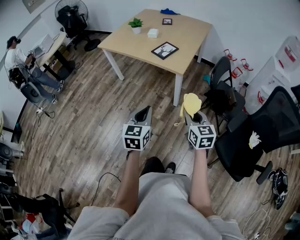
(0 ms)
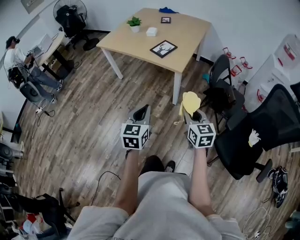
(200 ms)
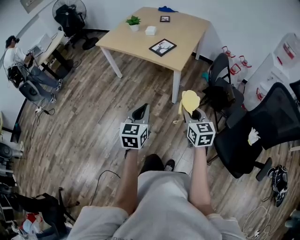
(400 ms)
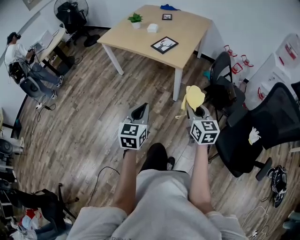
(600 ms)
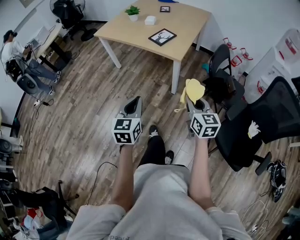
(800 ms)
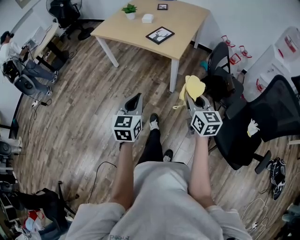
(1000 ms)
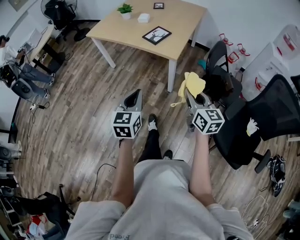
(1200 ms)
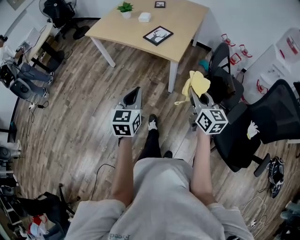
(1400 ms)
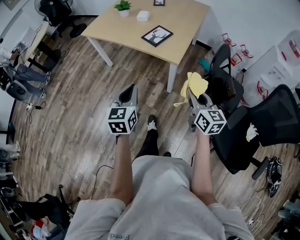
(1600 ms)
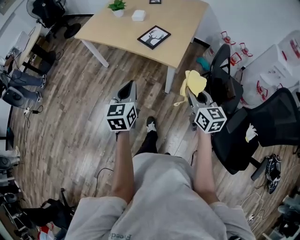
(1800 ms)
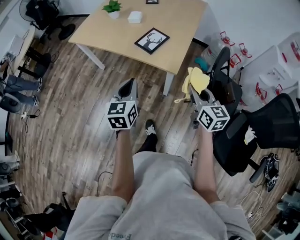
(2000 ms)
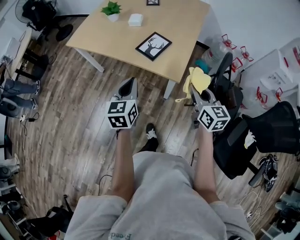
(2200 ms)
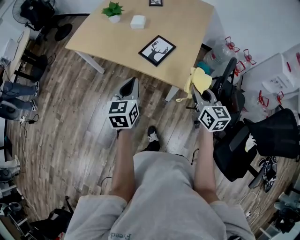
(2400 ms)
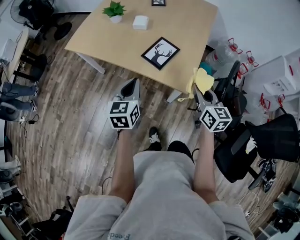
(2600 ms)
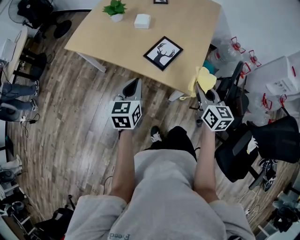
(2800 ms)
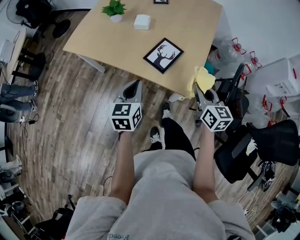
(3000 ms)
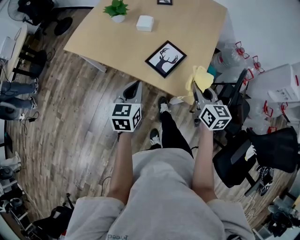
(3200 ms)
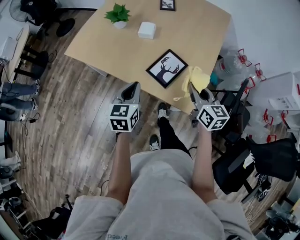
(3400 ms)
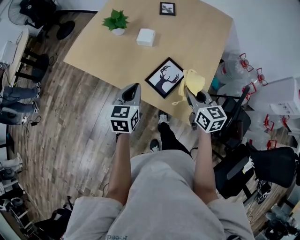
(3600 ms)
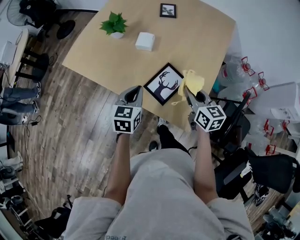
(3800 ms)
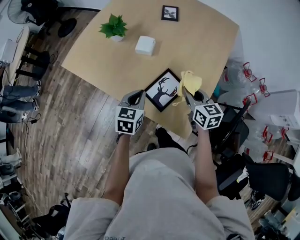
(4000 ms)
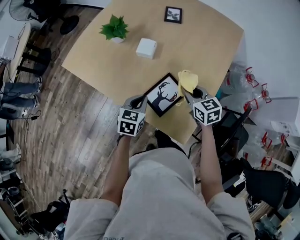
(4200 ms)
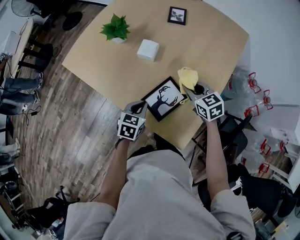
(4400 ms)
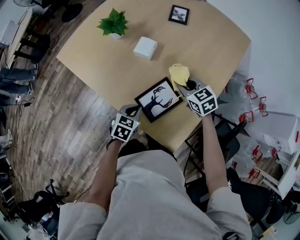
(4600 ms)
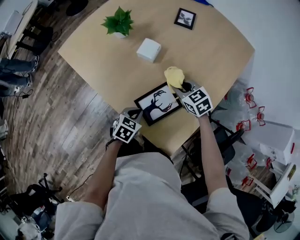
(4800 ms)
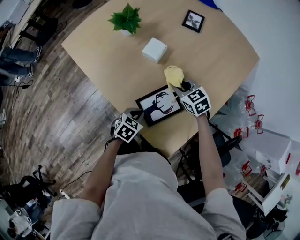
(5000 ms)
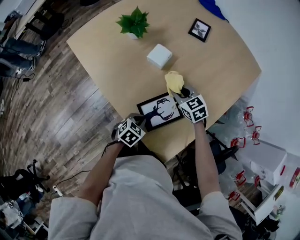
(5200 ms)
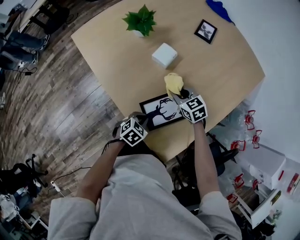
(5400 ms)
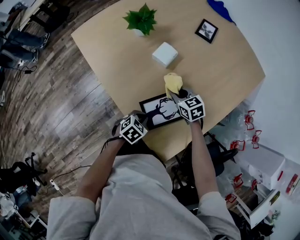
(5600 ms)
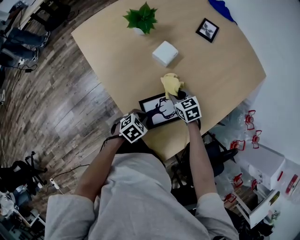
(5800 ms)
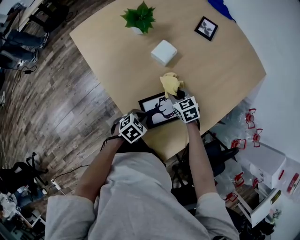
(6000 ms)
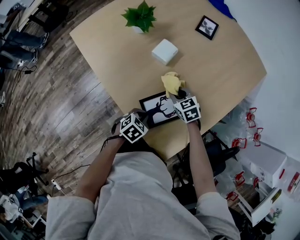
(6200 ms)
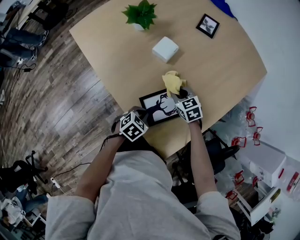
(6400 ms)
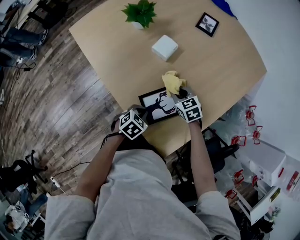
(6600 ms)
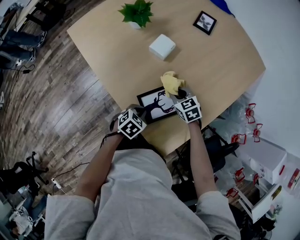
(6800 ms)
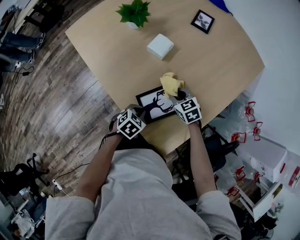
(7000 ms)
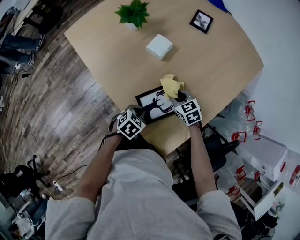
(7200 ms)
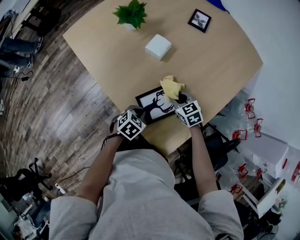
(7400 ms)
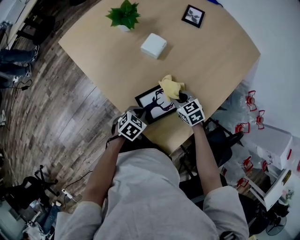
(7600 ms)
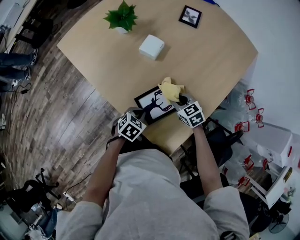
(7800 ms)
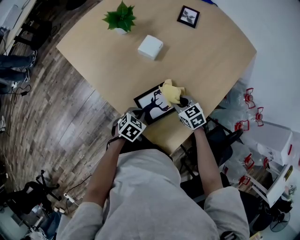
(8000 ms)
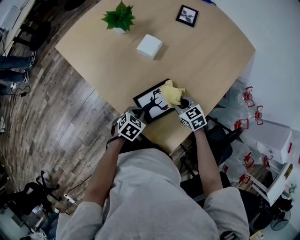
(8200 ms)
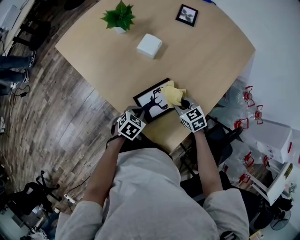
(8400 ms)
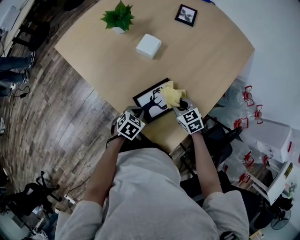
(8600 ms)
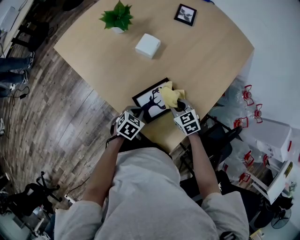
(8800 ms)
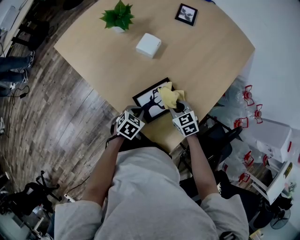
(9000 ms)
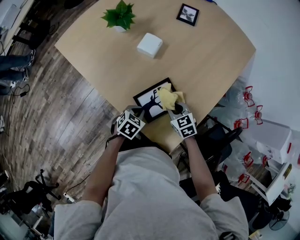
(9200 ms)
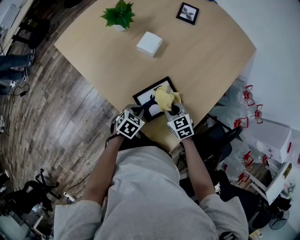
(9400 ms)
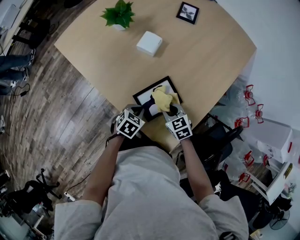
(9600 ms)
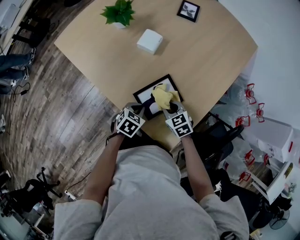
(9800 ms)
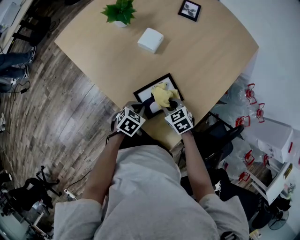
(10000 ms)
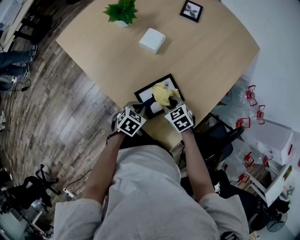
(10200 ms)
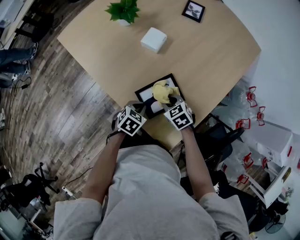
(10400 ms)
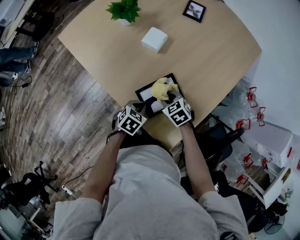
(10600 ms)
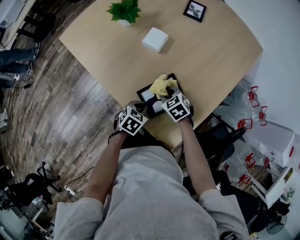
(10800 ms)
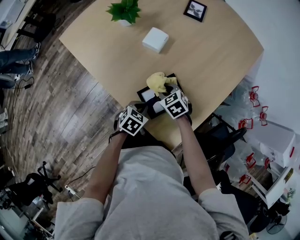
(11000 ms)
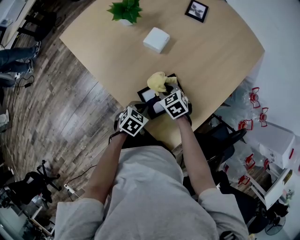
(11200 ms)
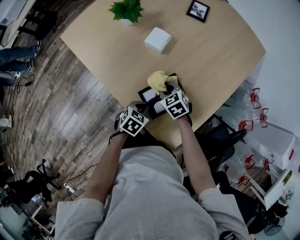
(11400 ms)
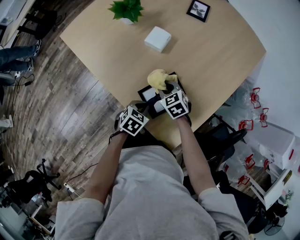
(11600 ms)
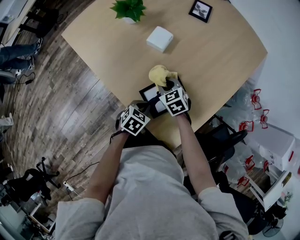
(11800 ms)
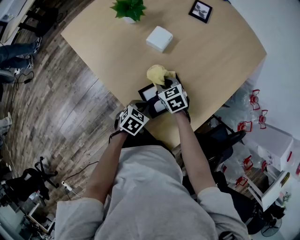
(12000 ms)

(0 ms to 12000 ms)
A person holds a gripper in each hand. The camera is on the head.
0 ms - 1600 ms: The two grippers go some 15 cm forward.
1600 ms - 3000 ms: The two grippers go approximately 35 cm forward.
3000 ms - 4400 ms: The left gripper heads forward and downward, covering roughly 20 cm, and turns by some 20 degrees. The right gripper moves forward, about 30 cm, and changes its angle by roughly 40 degrees.
4400 ms - 6000 ms: The right gripper moves downward and to the left, approximately 15 cm, and turns by about 20 degrees. Meanwhile the left gripper shifts approximately 10 cm downward.
6000 ms - 7600 ms: The right gripper travels backward by roughly 5 cm.
7600 ms - 9000 ms: The right gripper changes place by some 5 cm.
9000 ms - 10400 ms: The right gripper moves roughly 5 cm.
10400 ms - 12000 ms: The right gripper travels forward and to the left by about 10 cm.

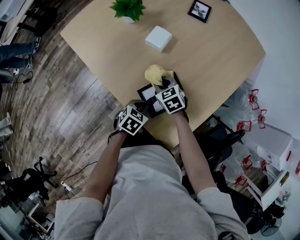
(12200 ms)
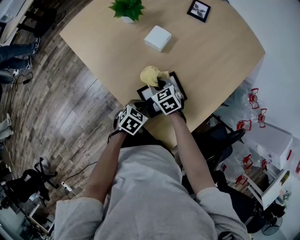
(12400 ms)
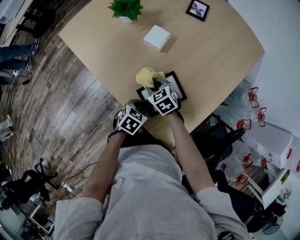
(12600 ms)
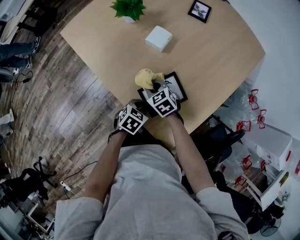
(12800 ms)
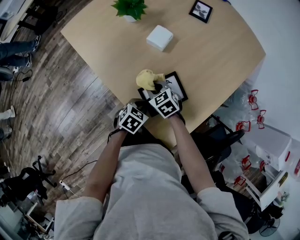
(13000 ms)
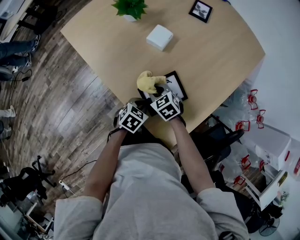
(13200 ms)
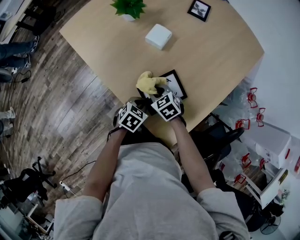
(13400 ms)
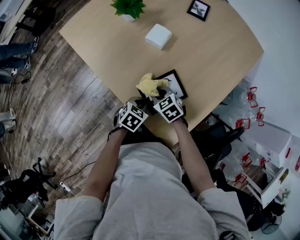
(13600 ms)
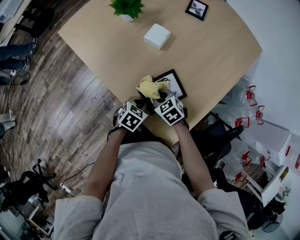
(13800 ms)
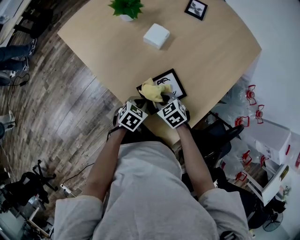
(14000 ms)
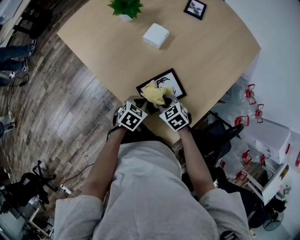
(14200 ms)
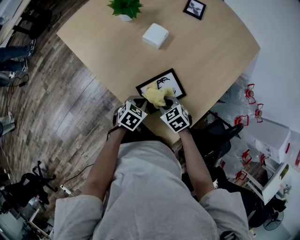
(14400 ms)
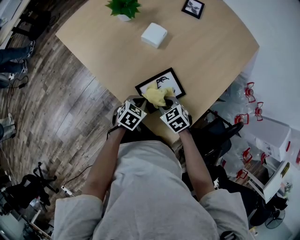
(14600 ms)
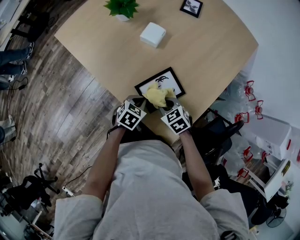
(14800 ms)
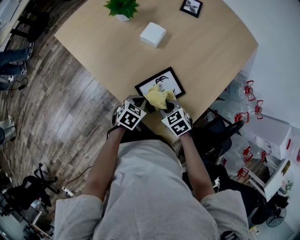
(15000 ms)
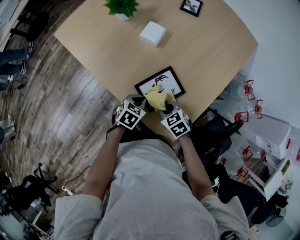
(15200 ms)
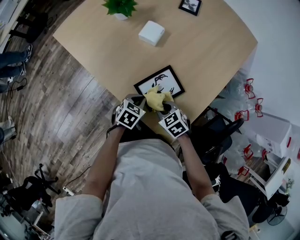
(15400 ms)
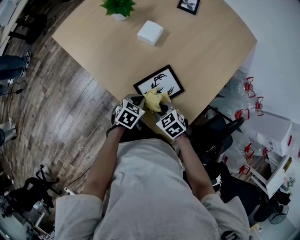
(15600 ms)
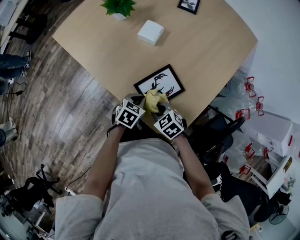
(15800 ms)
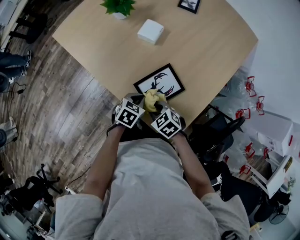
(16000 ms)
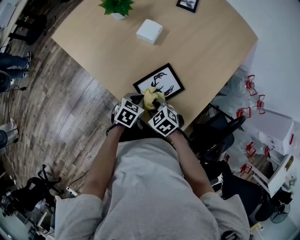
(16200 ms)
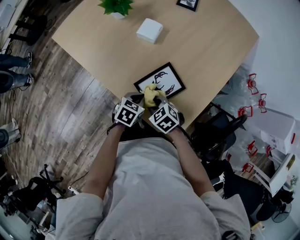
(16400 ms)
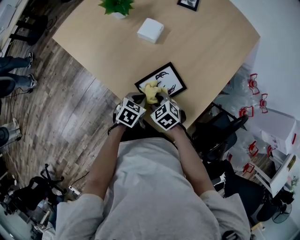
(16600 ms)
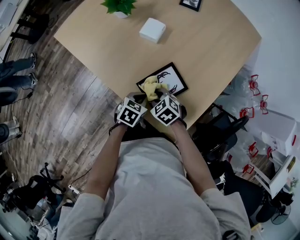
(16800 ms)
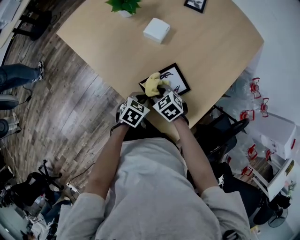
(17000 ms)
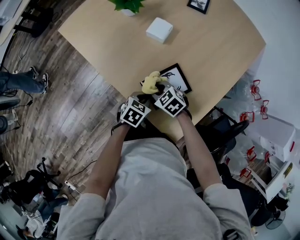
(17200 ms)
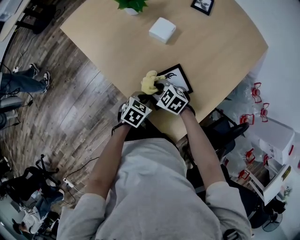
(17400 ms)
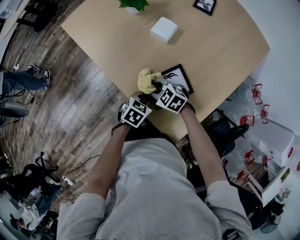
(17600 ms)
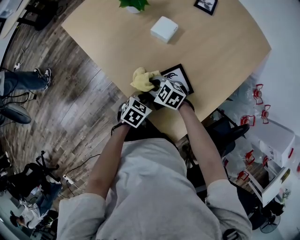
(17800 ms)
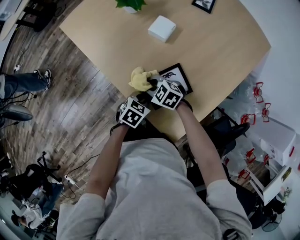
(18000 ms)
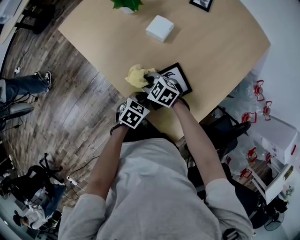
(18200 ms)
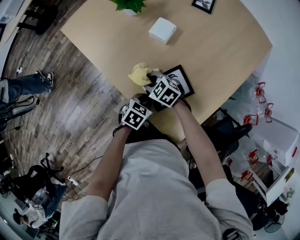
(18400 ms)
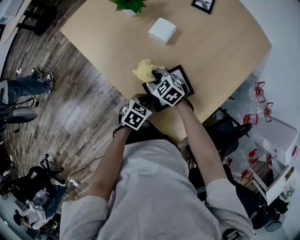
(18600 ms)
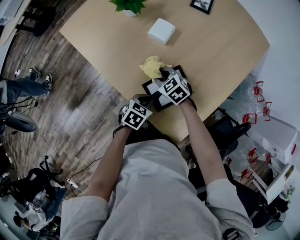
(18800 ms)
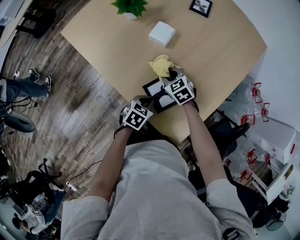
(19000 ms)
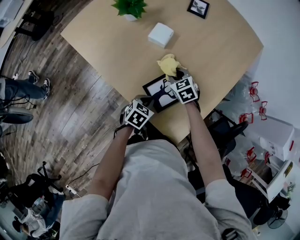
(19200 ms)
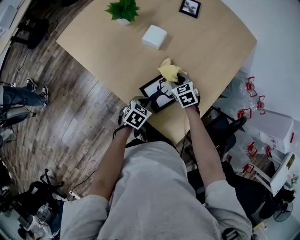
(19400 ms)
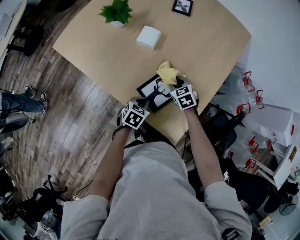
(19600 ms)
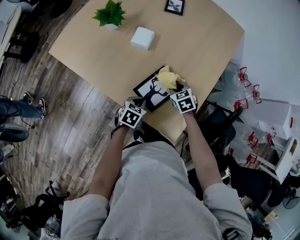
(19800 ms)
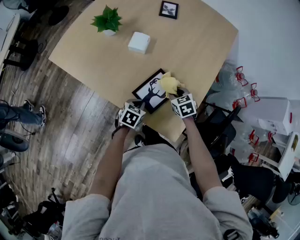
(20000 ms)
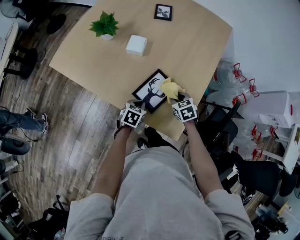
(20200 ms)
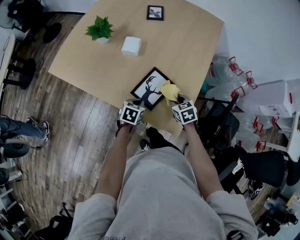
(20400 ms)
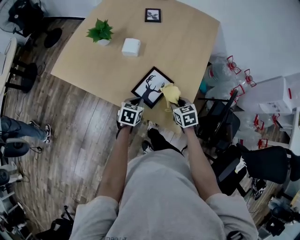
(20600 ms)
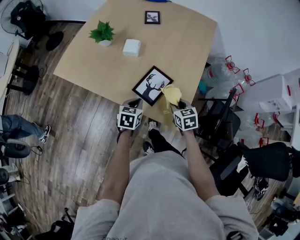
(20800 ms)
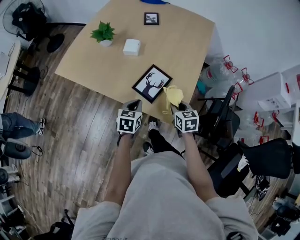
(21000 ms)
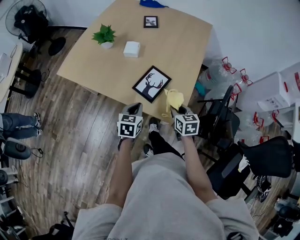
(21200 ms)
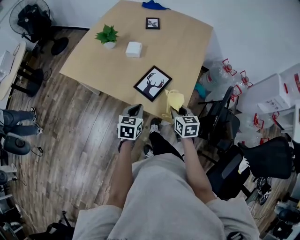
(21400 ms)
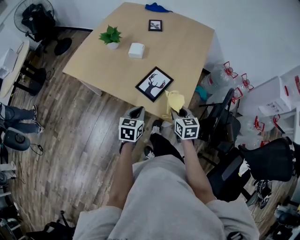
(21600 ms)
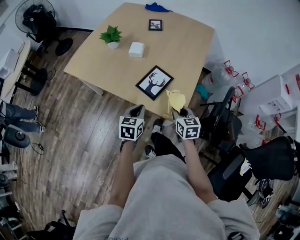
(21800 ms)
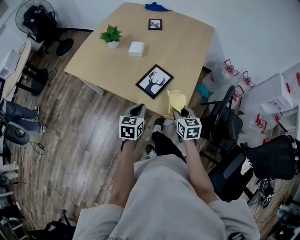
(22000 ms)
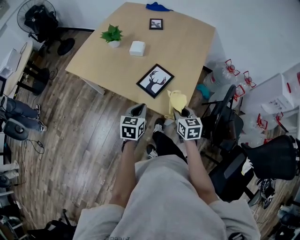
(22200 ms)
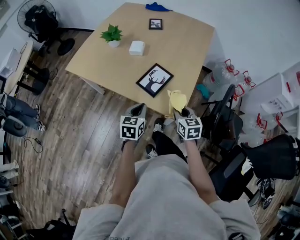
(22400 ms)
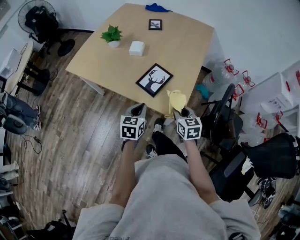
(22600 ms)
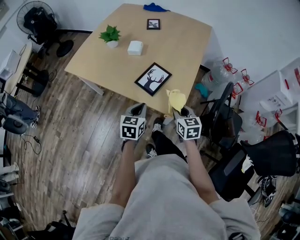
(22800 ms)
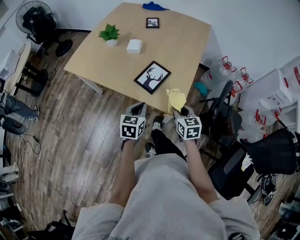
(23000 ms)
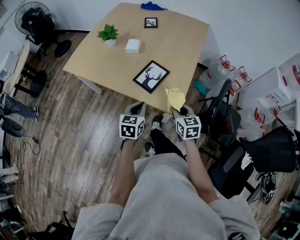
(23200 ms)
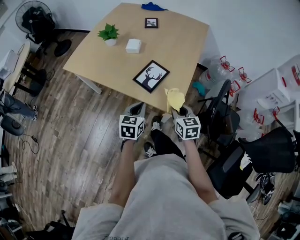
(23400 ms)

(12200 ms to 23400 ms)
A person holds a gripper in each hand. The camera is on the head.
12200 ms - 13800 ms: The right gripper is displaced backward by some 10 cm.
13800 ms - 15400 ms: The right gripper is displaced backward by about 5 cm.
15400 ms - 17000 ms: The right gripper travels forward by about 5 cm.
17000 ms - 18600 ms: The right gripper ends up roughly 10 cm from where it was.
18600 ms - 20200 ms: The right gripper shifts by some 20 cm, and changes its angle by about 50 degrees.
20200 ms - 21800 ms: The right gripper travels backward and upward by approximately 20 cm, and changes its angle by some 30 degrees; the left gripper shifts roughly 20 cm upward and backward, and swivels roughly 20 degrees.
21800 ms - 23400 ms: The right gripper travels backward by approximately 5 cm; the left gripper moves roughly 5 cm.

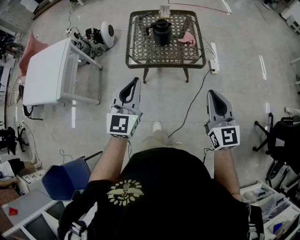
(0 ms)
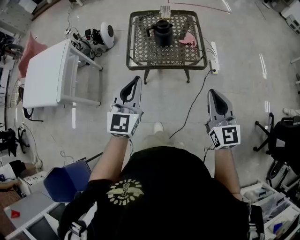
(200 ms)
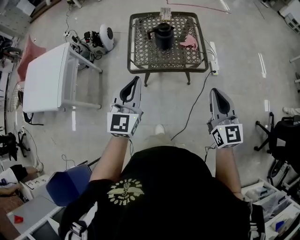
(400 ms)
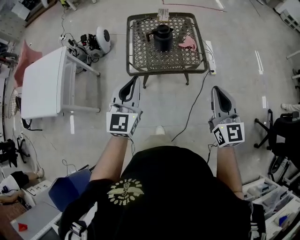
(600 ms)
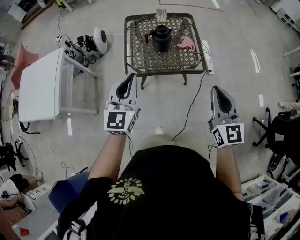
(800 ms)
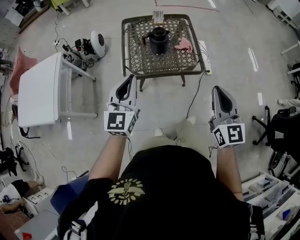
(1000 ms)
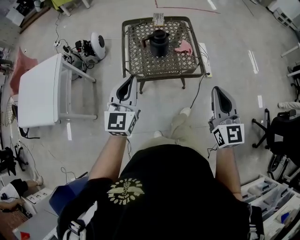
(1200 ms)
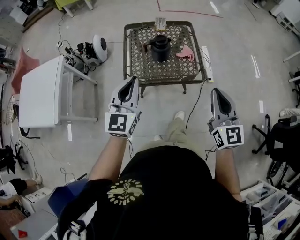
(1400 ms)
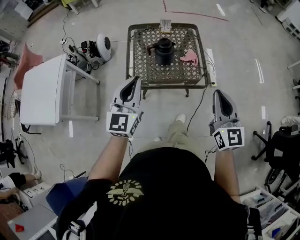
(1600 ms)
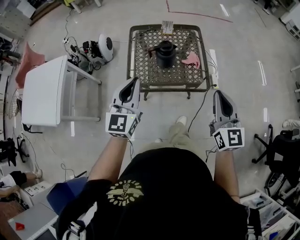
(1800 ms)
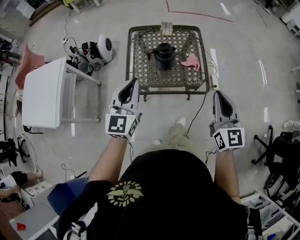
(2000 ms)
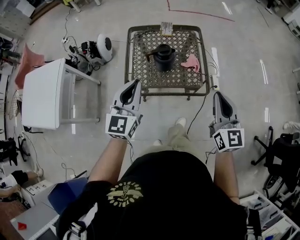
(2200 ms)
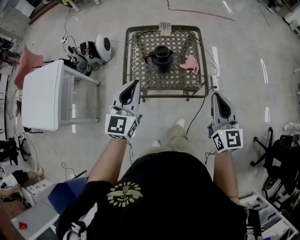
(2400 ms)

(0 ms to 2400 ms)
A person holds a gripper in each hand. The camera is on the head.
0 ms - 1200 ms: The left gripper heads forward and to the left, covering roughly 10 cm, while the right gripper moves forward, roughly 10 cm.
1200 ms - 2400 ms: The grippers both shift forward by some 15 cm.
